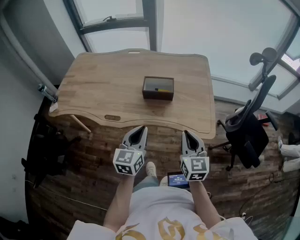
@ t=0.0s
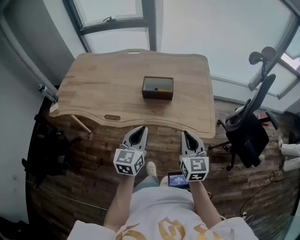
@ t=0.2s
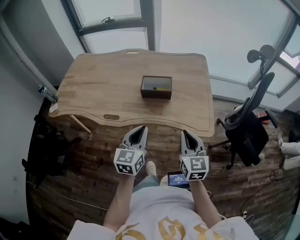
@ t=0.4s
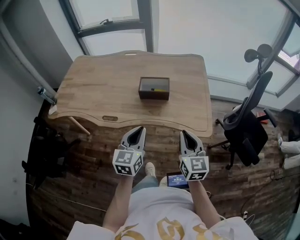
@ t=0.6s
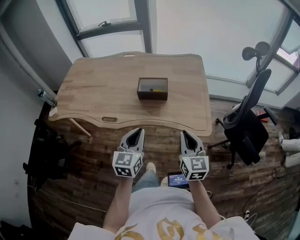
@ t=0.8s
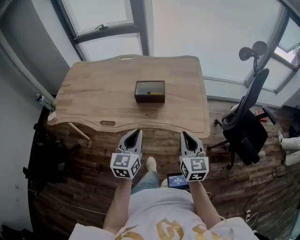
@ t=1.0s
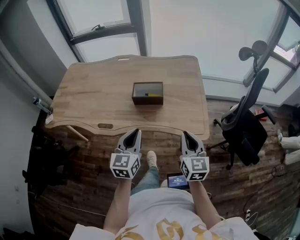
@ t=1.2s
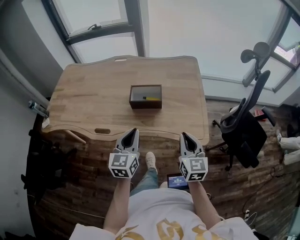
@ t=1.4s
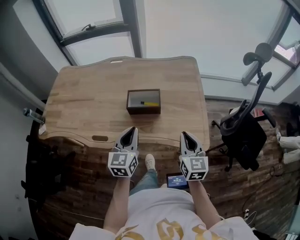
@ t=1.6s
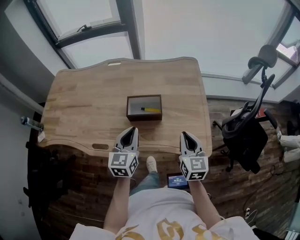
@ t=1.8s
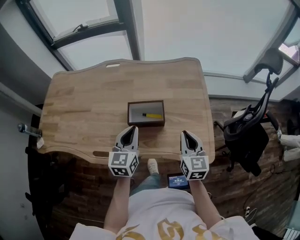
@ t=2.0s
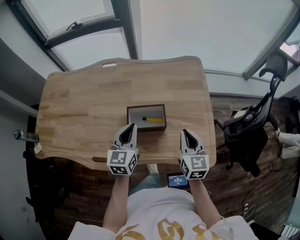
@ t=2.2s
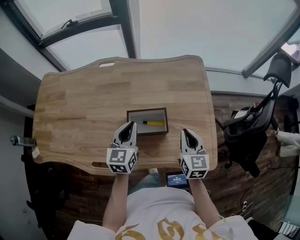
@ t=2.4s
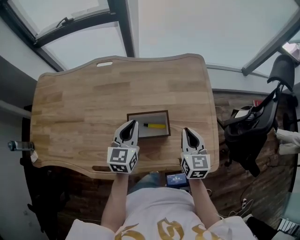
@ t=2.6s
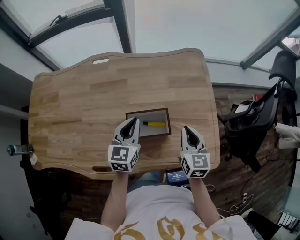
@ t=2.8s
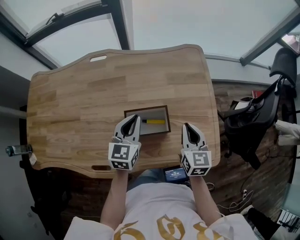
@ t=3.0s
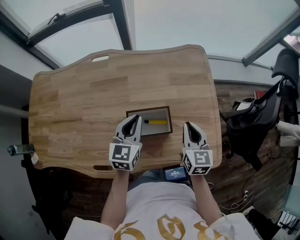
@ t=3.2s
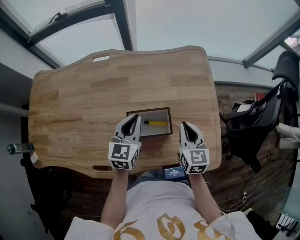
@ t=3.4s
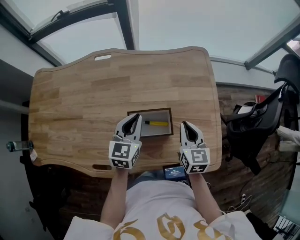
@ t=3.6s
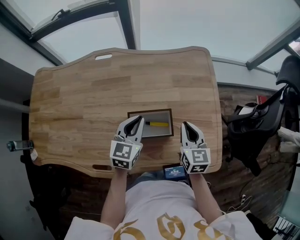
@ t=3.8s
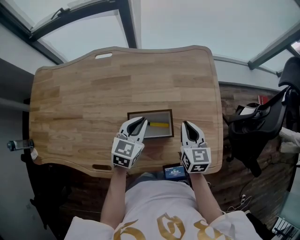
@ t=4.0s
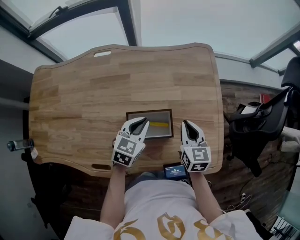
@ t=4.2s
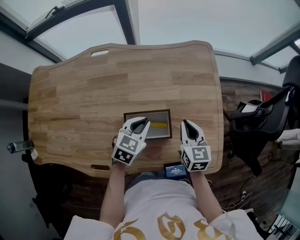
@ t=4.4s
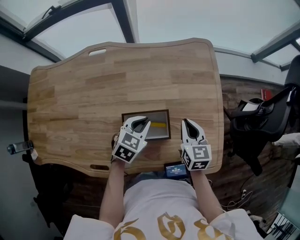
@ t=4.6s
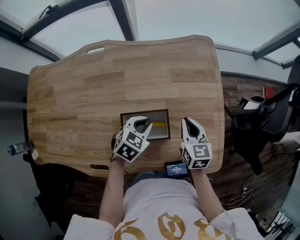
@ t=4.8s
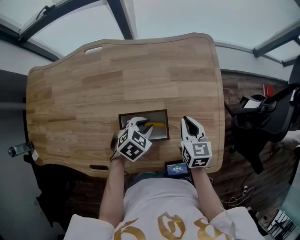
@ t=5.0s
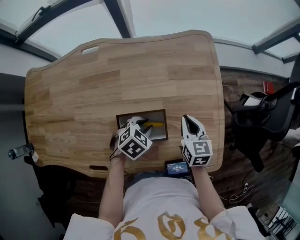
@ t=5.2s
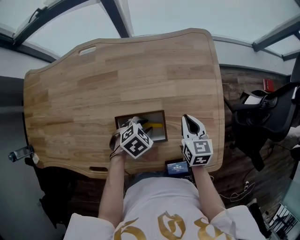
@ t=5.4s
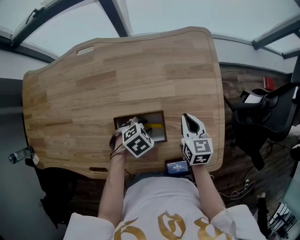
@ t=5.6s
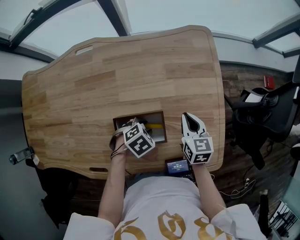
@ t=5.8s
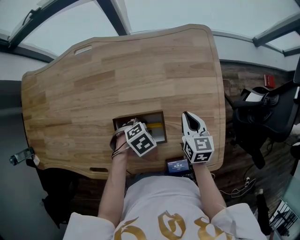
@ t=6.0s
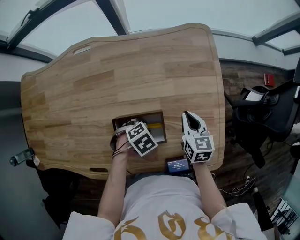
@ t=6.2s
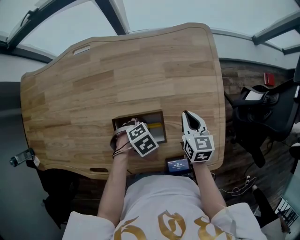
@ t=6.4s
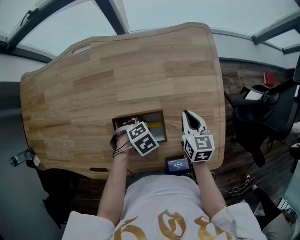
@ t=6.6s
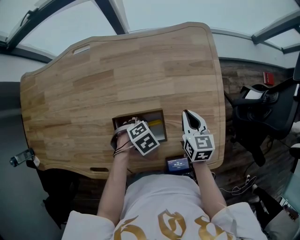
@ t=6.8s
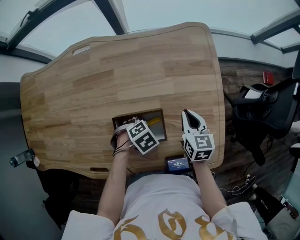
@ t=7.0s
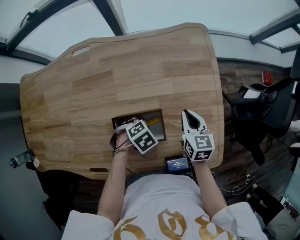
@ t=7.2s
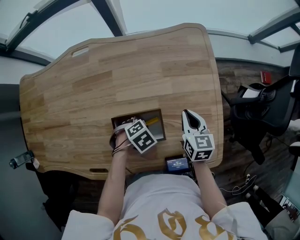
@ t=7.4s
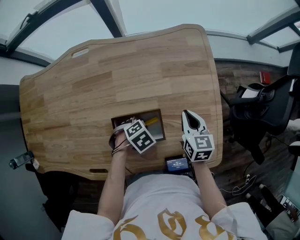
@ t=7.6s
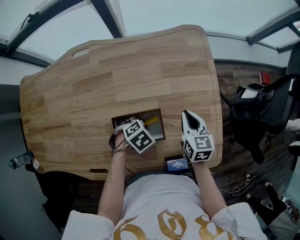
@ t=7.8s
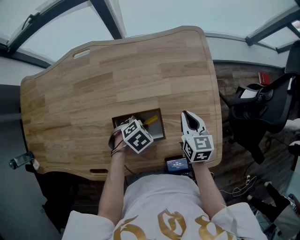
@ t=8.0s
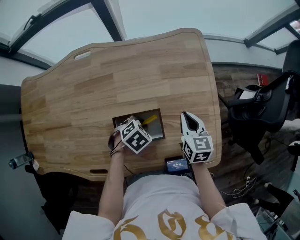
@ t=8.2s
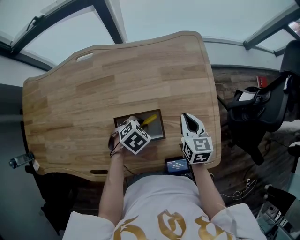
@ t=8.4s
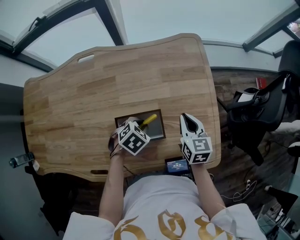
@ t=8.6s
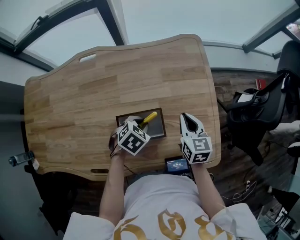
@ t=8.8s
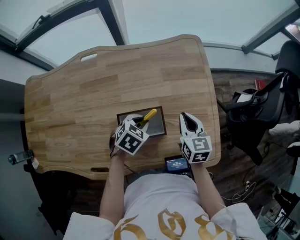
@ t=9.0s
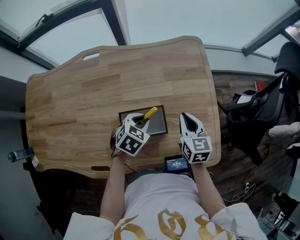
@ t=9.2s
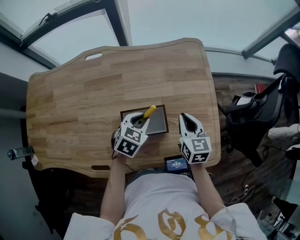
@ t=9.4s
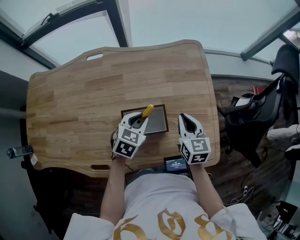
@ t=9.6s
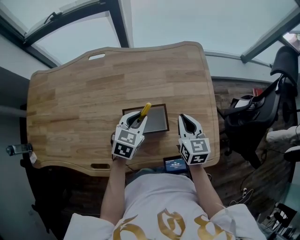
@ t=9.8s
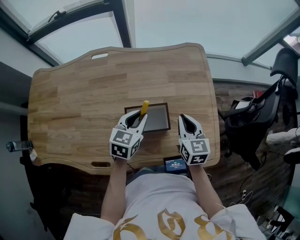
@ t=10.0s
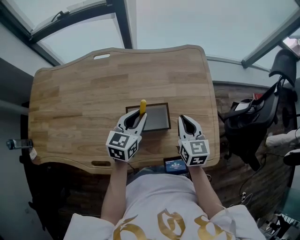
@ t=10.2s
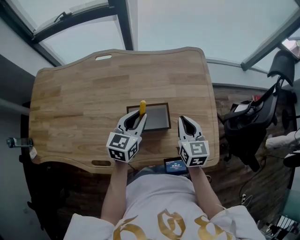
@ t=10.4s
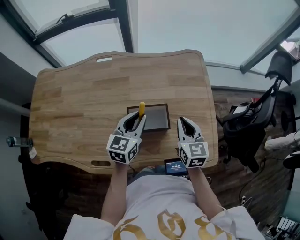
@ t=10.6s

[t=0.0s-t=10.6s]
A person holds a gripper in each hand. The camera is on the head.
t=0.0s to t=1.6s: The right gripper travels forward and to the right by some 10 cm. The left gripper heads forward, covering roughly 10 cm.
t=1.6s to t=3.0s: The grippers both shift forward by approximately 25 cm.
t=3.0s to t=4.6s: The left gripper heads downward, covering some 10 cm, and swivels approximately 30 degrees, while the right gripper goes about 10 cm downward and forward.
t=4.6s to t=6.0s: The right gripper shifts some 5 cm downward; the left gripper travels downward by roughly 10 cm, rotates roughly 40 degrees, and opens its fingers.
t=6.0s to t=7.6s: The grippers stay close to where they were, moving slightly.
t=7.6s to t=9.0s: The right gripper shifts by some 5 cm. Meanwhile the left gripper goes roughly 10 cm upward, and turns by roughly 30 degrees.
t=9.0s to t=10.6s: The left gripper shifts some 15 cm upward, and tips its fingers upward by approximately 40 degrees. The right gripper travels upward and backward by approximately 10 cm.

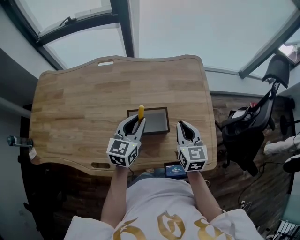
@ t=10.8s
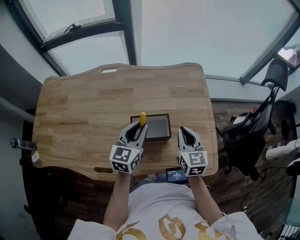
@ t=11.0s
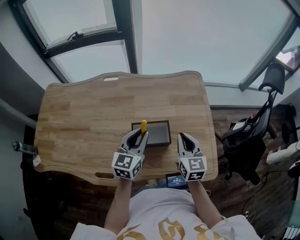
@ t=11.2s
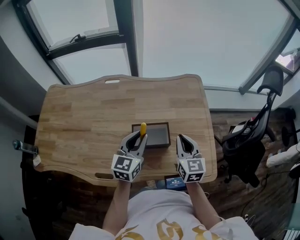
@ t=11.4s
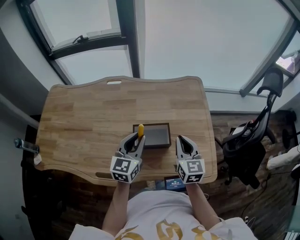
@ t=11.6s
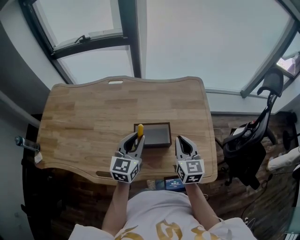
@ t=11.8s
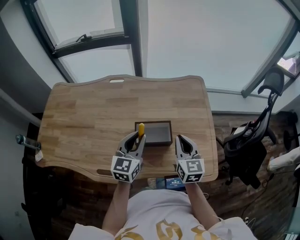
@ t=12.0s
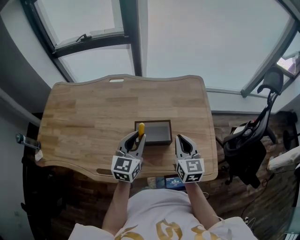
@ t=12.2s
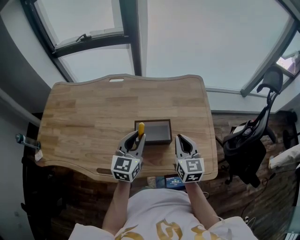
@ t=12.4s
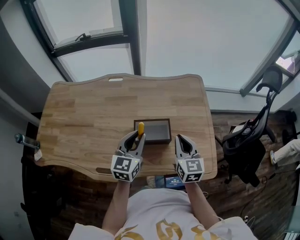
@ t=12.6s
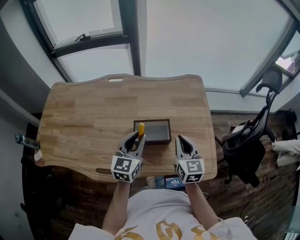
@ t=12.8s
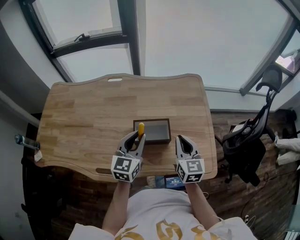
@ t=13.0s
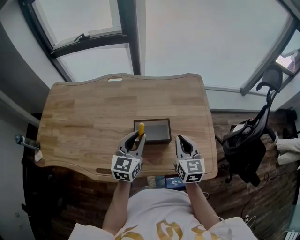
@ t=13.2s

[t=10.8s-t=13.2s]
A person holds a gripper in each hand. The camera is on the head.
t=10.8s to t=12.0s: The left gripper moves approximately 5 cm.
t=12.0s to t=13.2s: The grippers make only small movements.

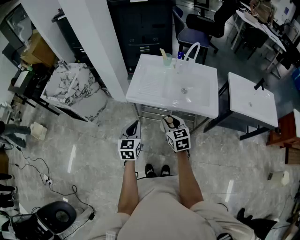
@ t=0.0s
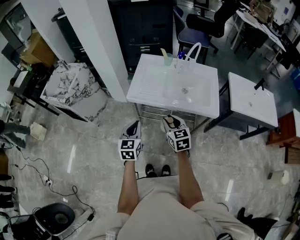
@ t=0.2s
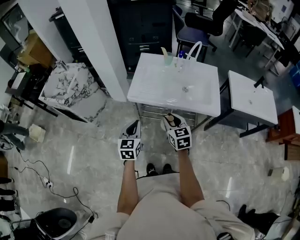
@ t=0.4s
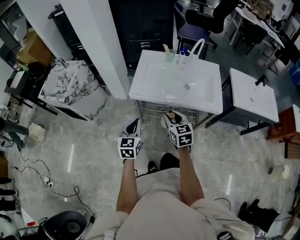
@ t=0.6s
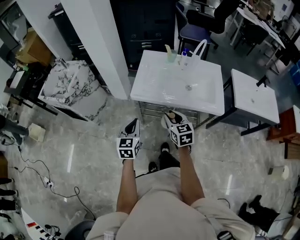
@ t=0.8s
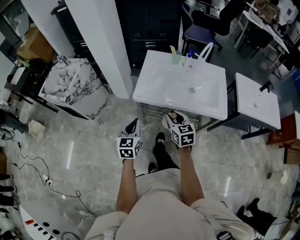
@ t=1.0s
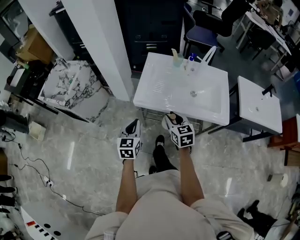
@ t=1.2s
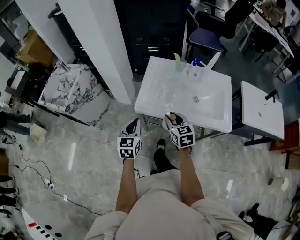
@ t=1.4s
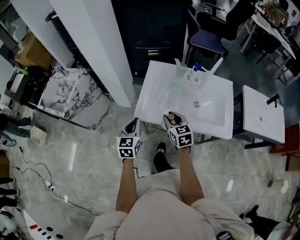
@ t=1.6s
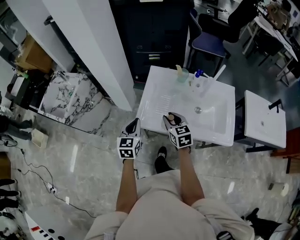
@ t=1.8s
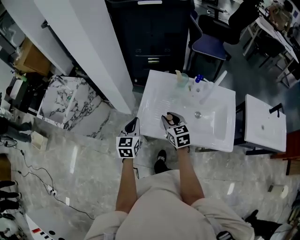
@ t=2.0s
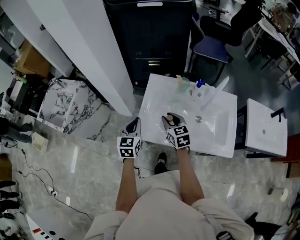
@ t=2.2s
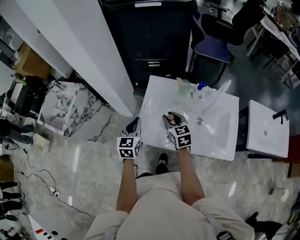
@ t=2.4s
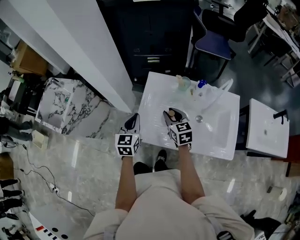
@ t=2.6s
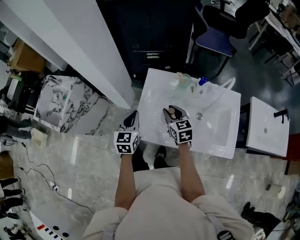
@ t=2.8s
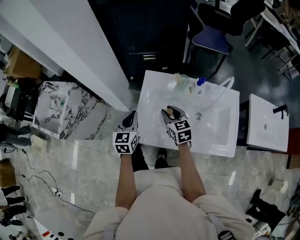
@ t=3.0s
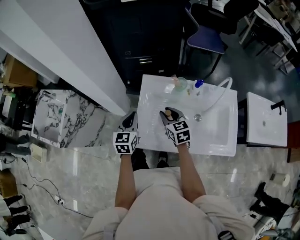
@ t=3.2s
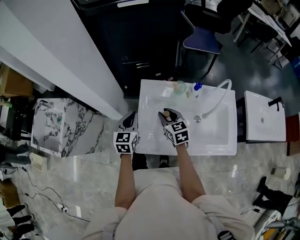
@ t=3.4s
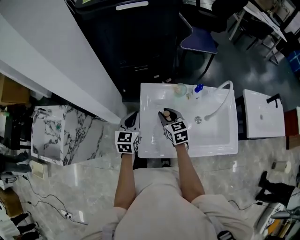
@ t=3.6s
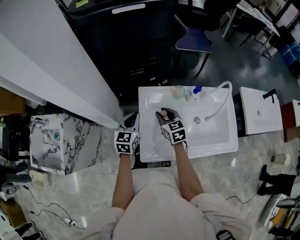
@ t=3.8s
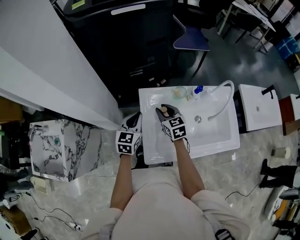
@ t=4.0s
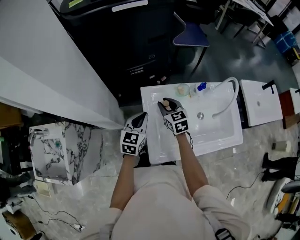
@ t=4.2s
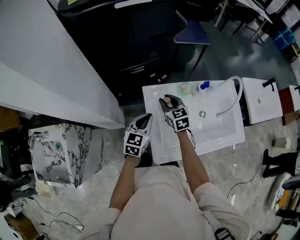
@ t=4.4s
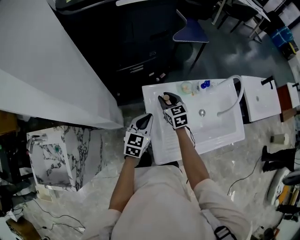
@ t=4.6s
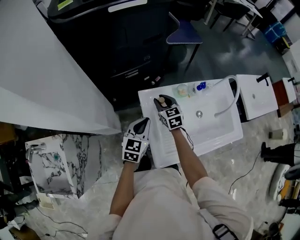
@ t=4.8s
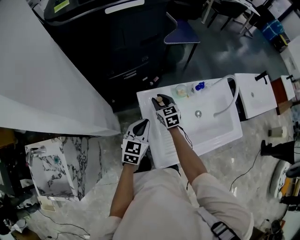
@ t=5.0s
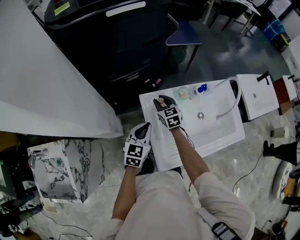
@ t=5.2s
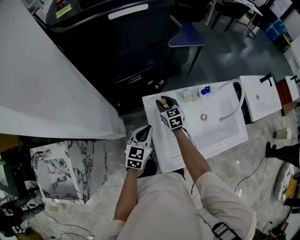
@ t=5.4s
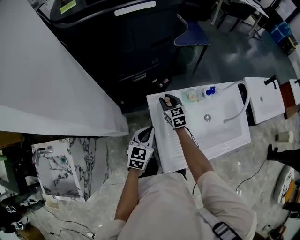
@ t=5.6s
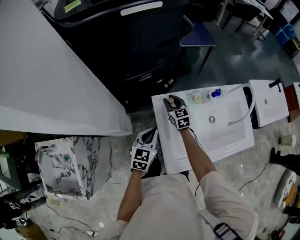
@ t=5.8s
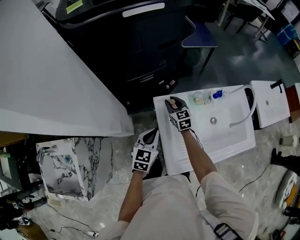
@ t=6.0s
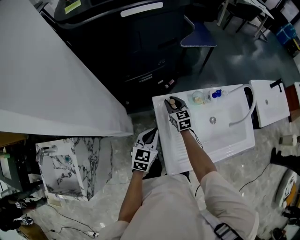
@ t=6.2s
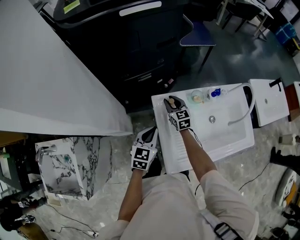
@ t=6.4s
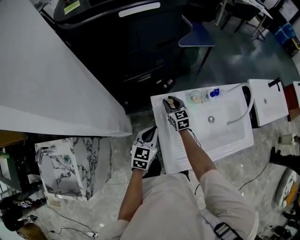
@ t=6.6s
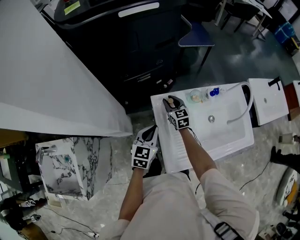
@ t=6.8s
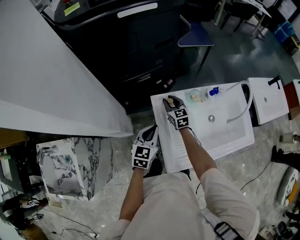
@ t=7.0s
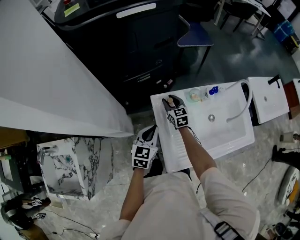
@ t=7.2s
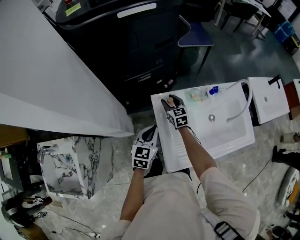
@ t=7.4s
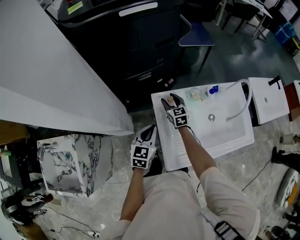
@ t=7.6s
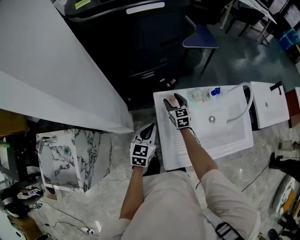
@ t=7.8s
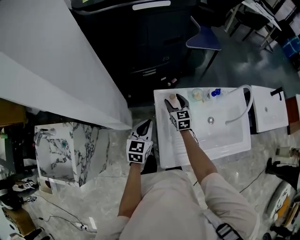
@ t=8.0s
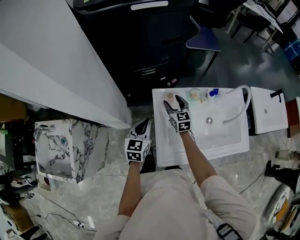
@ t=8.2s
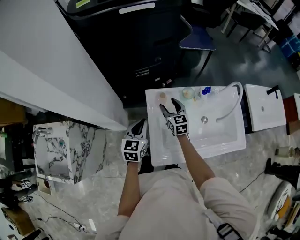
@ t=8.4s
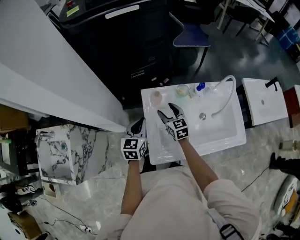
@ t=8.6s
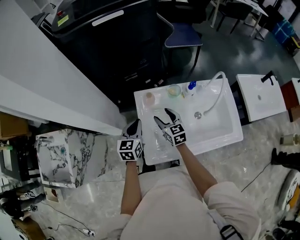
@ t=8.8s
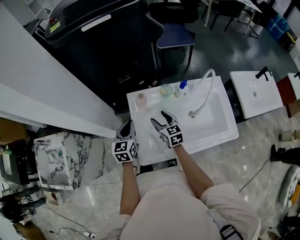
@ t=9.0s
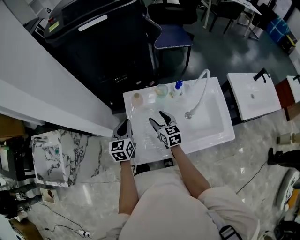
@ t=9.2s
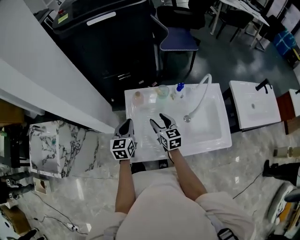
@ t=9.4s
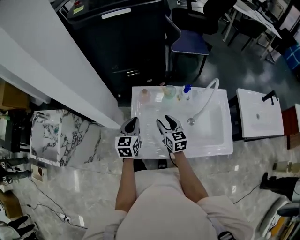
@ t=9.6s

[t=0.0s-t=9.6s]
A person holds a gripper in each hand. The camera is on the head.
t=0.0s to t=1.6s: Both grippers move forward, approximately 15 cm.
t=1.6s to t=3.2s: The grippers both shift forward by about 20 cm.
t=3.2s to t=4.8s: The left gripper changes place by about 10 cm, and turns by some 30 degrees. The right gripper moves some 15 cm.
t=4.8s to t=6.4s: The right gripper shifts by some 5 cm.
t=6.4s to t=8.0s: The right gripper opens its fingers.
t=8.0s to t=9.6s: The right gripper moves backward and to the right, about 20 cm. Meanwhile the left gripper goes approximately 10 cm to the right and backward.

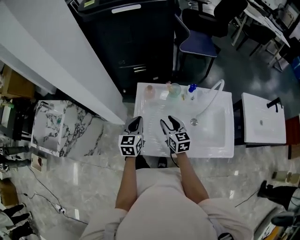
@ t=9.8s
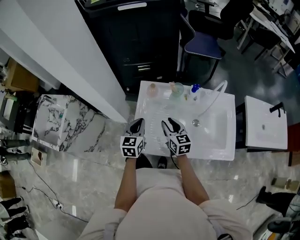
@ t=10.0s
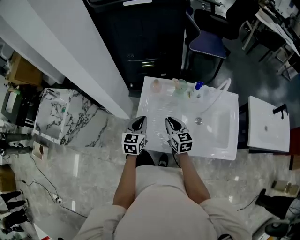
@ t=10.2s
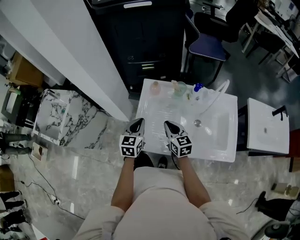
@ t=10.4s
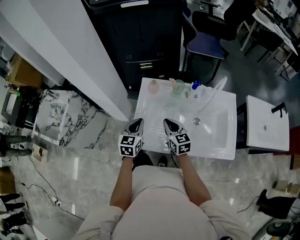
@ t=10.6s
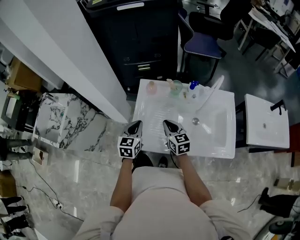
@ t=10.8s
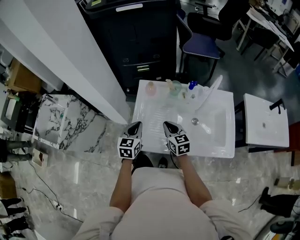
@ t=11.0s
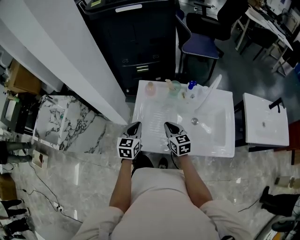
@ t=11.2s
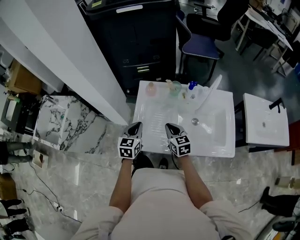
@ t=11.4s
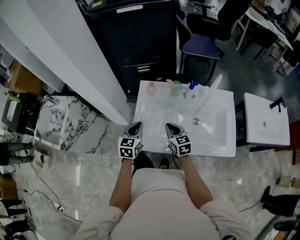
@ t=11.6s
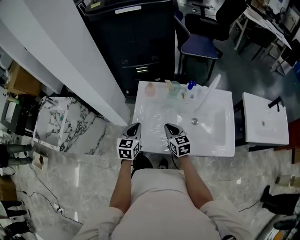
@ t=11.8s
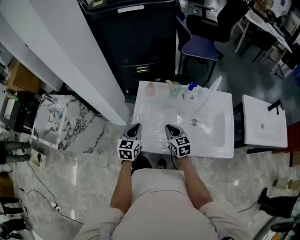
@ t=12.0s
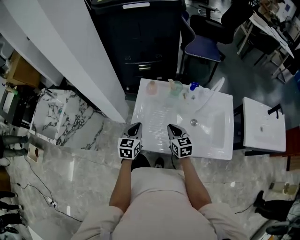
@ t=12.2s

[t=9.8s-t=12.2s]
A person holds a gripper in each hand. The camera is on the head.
t=9.8s to t=11.0s: The right gripper closes up.
t=11.0s to t=12.2s: The grippers make only small movements.
